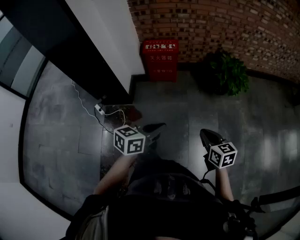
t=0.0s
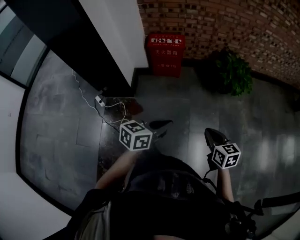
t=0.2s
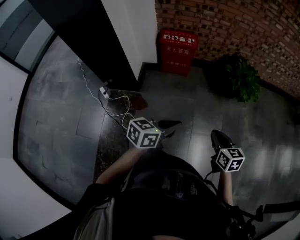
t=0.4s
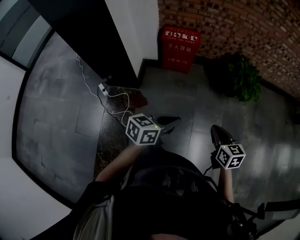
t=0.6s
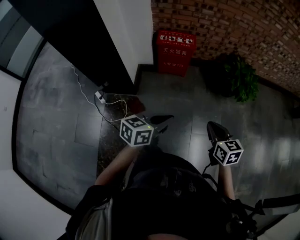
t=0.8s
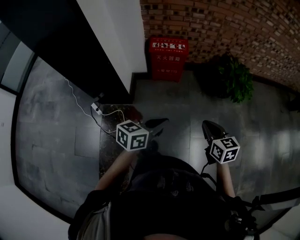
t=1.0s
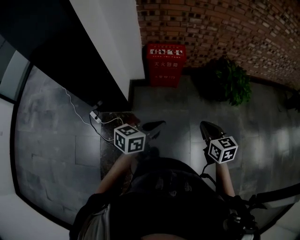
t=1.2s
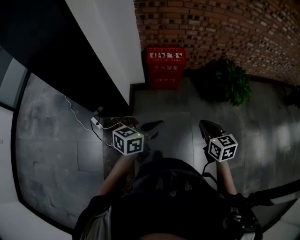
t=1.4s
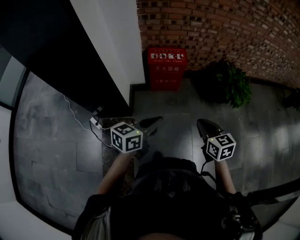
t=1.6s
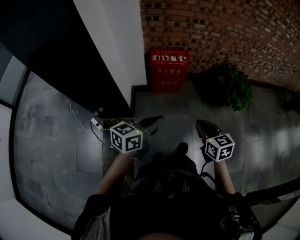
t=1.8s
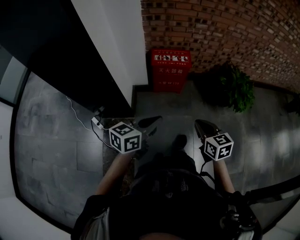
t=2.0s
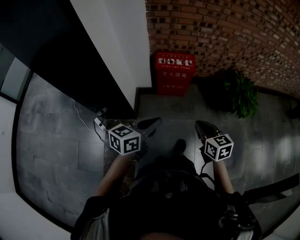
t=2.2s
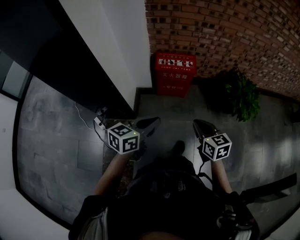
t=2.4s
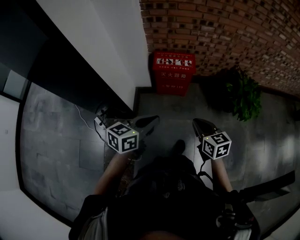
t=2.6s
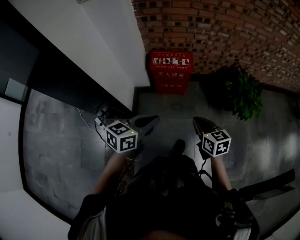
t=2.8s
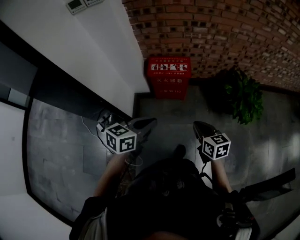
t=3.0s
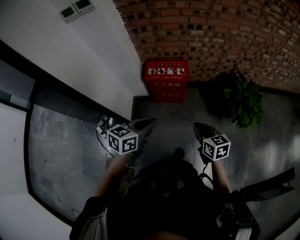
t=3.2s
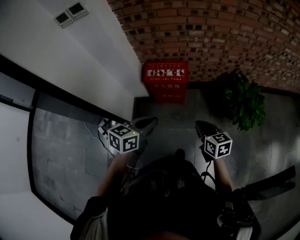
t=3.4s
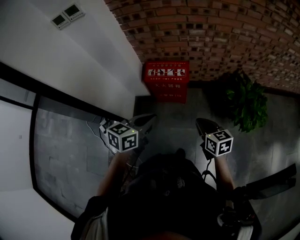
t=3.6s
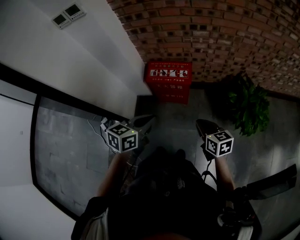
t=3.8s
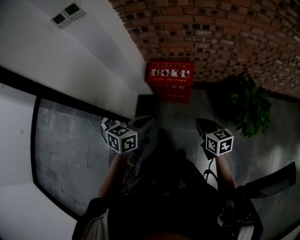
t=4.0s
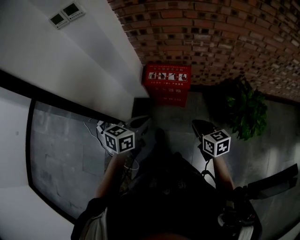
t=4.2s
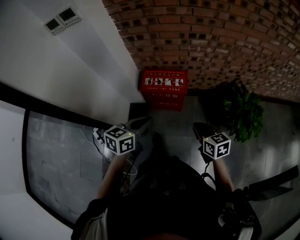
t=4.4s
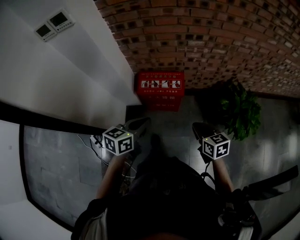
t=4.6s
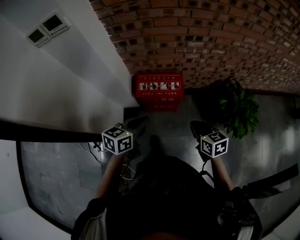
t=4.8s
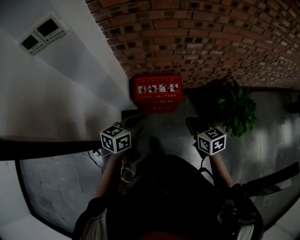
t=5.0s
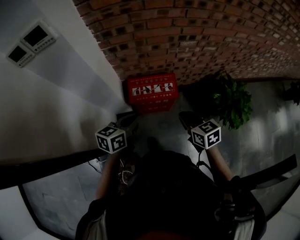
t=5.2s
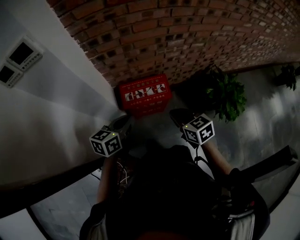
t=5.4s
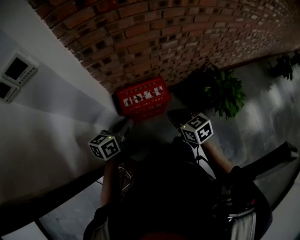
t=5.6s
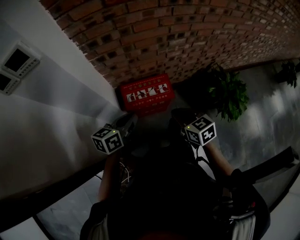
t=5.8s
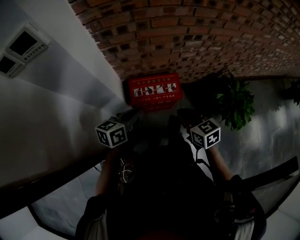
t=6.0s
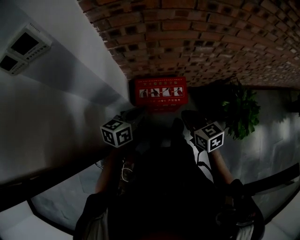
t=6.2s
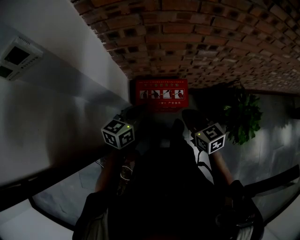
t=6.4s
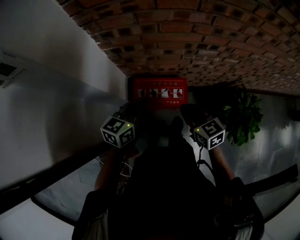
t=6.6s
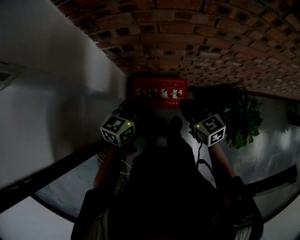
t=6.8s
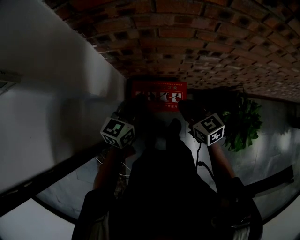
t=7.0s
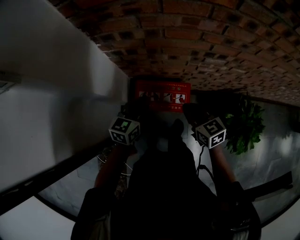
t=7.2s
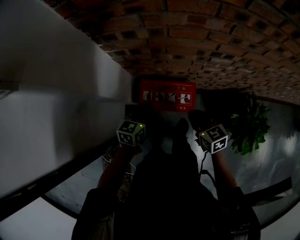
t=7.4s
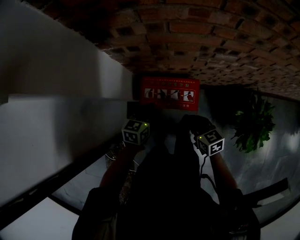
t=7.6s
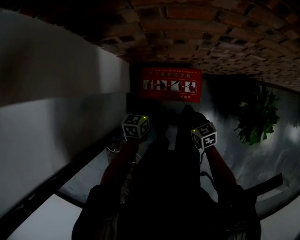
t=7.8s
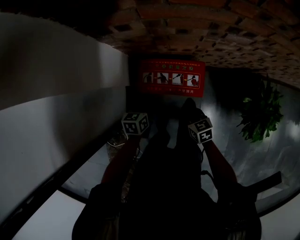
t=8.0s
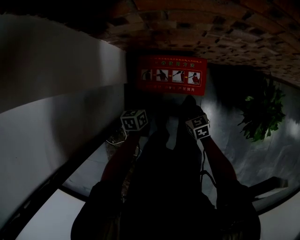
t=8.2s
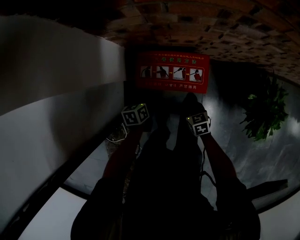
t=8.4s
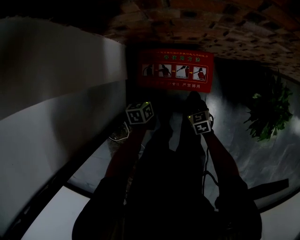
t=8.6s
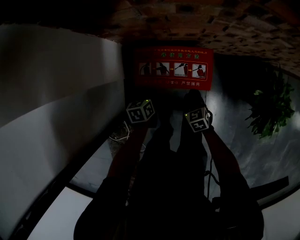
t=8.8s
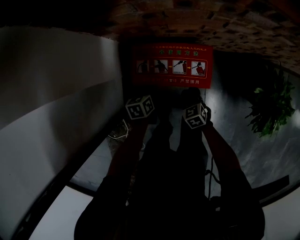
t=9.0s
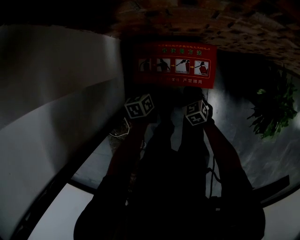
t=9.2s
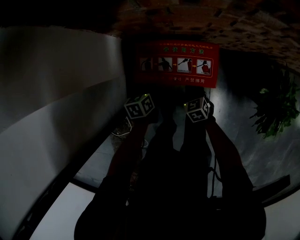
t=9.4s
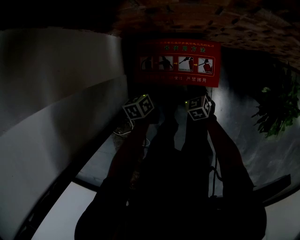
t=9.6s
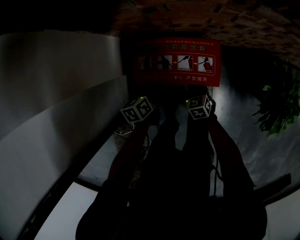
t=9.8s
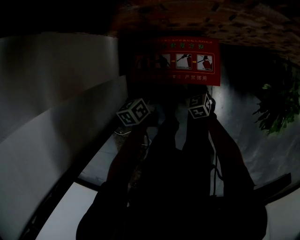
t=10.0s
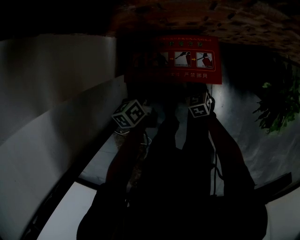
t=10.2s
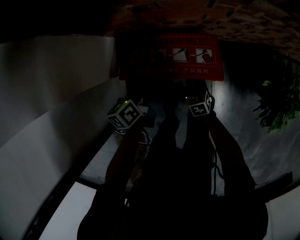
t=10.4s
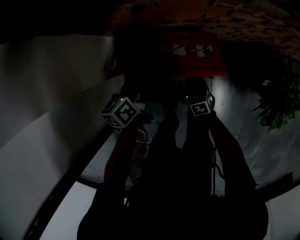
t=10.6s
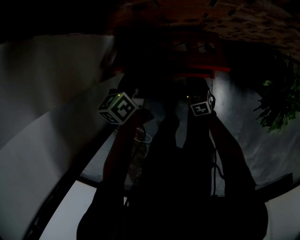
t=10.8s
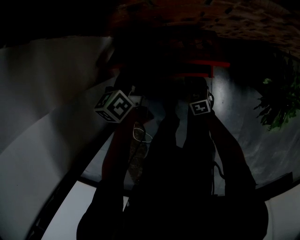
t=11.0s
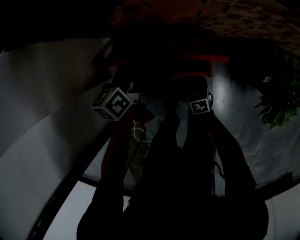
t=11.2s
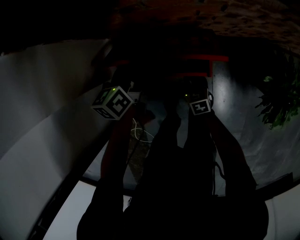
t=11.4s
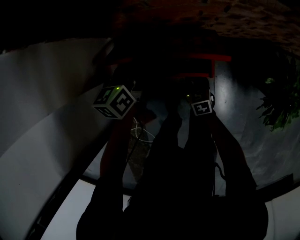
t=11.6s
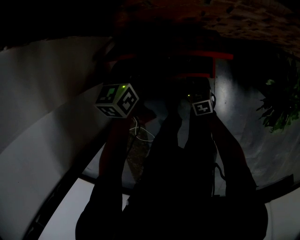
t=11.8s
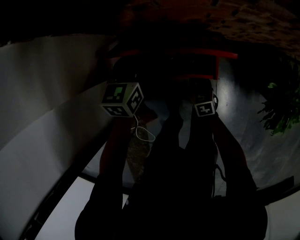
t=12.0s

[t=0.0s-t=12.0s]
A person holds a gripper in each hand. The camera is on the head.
t=0.0s to t=1.6s: The grippers both shift to the left and forward by some 30 cm.
t=1.6s to t=3.0s: The grippers both shift forward by approximately 20 cm.
t=3.0s to t=4.4s: The grippers both shift forward by roughly 15 cm.
t=4.4s to t=6.0s: The right gripper goes approximately 20 cm to the left and forward, while the left gripper goes approximately 20 cm forward and to the left.
t=6.0s to t=7.6s: The grippers both shift downward and forward by about 15 cm. The left gripper changes its angle by some 30 degrees.
t=7.6s to t=9.0s: Both grippers travel together downward, about 25 cm. The right gripper changes its angle by roughly 20 degrees; the left gripper changes its angle by about 30 degrees.
t=9.0s to t=10.4s: The left gripper goes some 10 cm upward.
t=10.4s to t=12.0s: The left gripper heads forward and upward, covering about 10 cm, and rotates about 40 degrees.

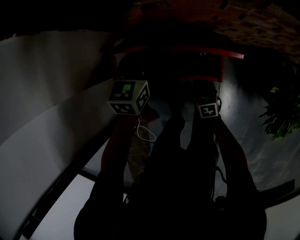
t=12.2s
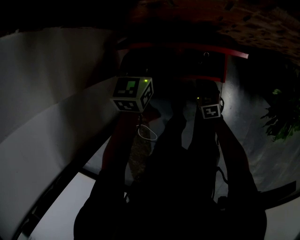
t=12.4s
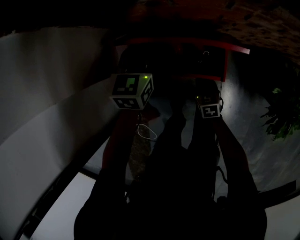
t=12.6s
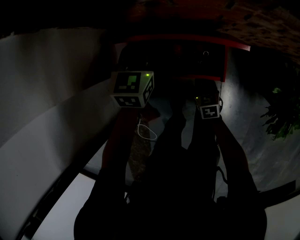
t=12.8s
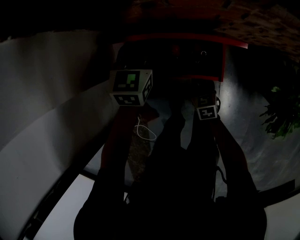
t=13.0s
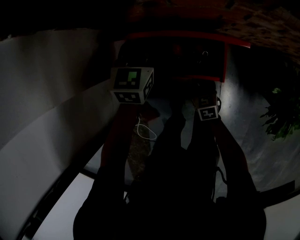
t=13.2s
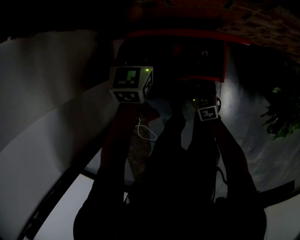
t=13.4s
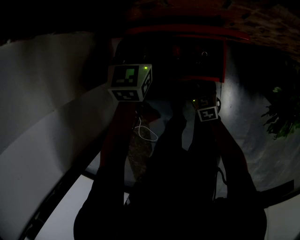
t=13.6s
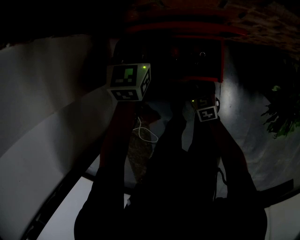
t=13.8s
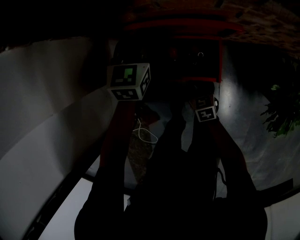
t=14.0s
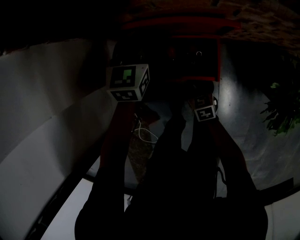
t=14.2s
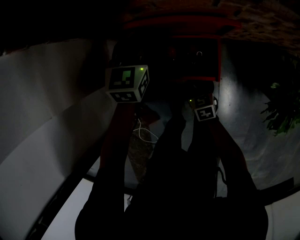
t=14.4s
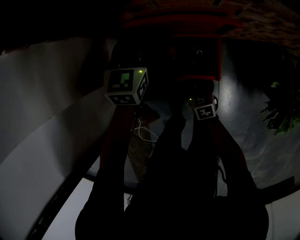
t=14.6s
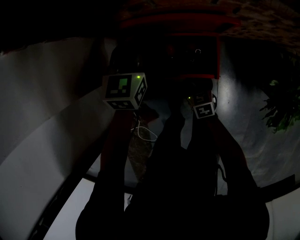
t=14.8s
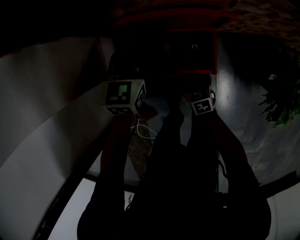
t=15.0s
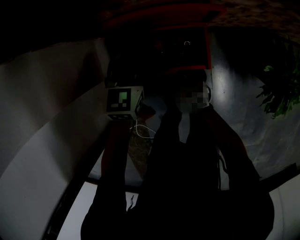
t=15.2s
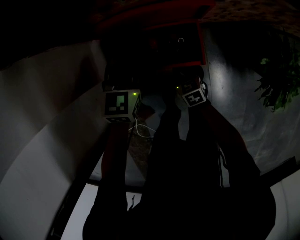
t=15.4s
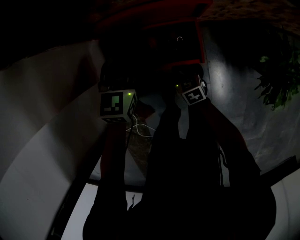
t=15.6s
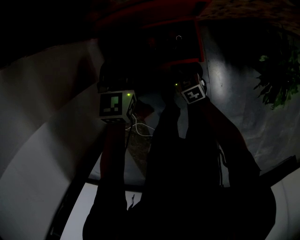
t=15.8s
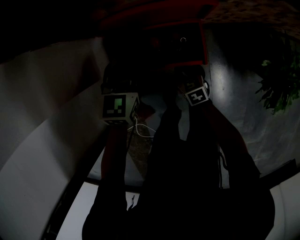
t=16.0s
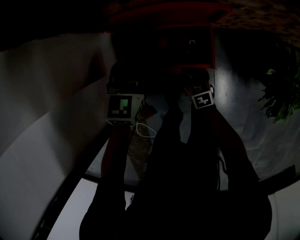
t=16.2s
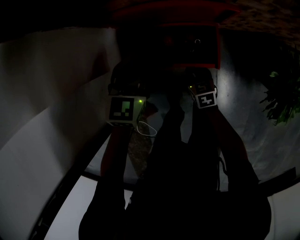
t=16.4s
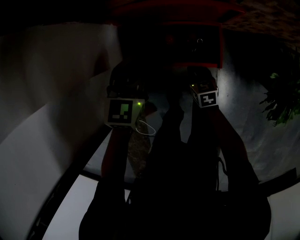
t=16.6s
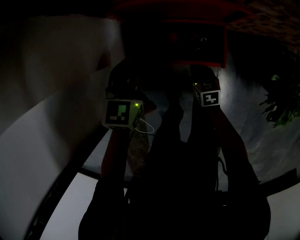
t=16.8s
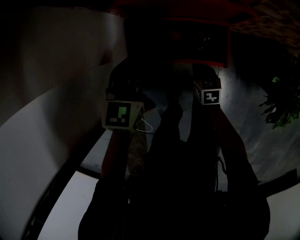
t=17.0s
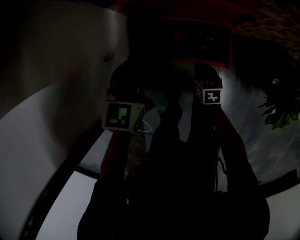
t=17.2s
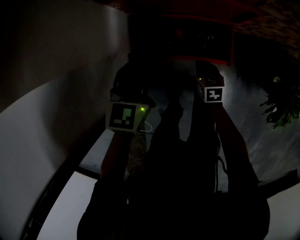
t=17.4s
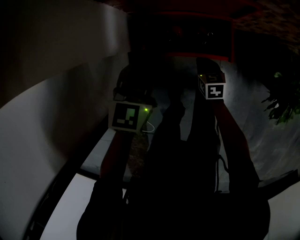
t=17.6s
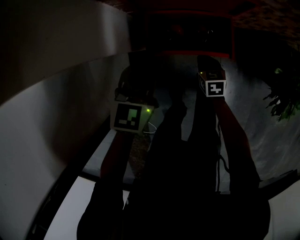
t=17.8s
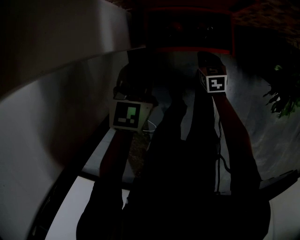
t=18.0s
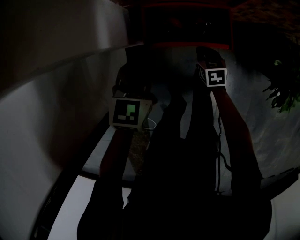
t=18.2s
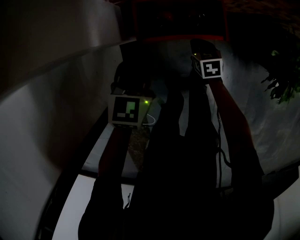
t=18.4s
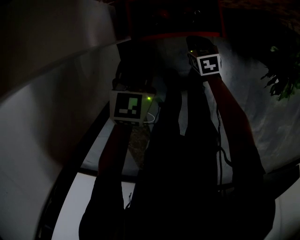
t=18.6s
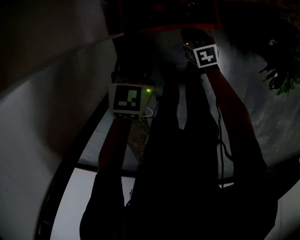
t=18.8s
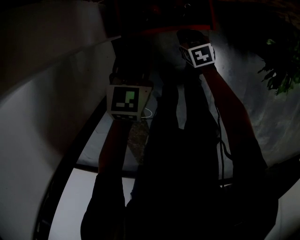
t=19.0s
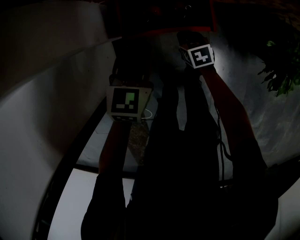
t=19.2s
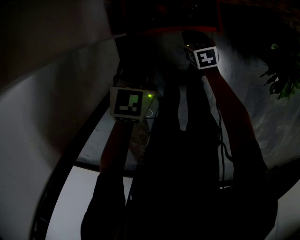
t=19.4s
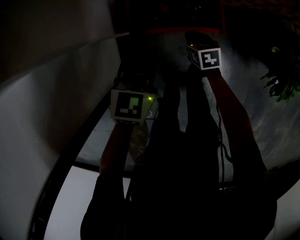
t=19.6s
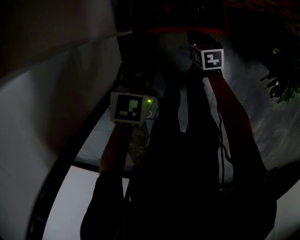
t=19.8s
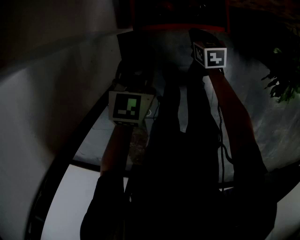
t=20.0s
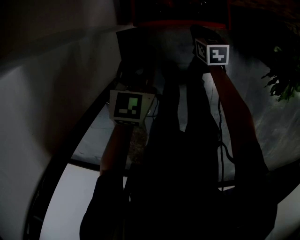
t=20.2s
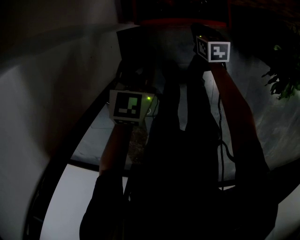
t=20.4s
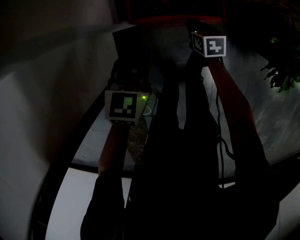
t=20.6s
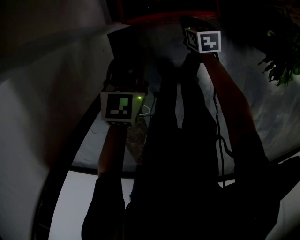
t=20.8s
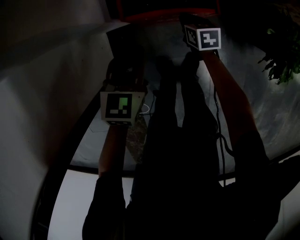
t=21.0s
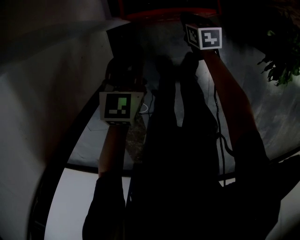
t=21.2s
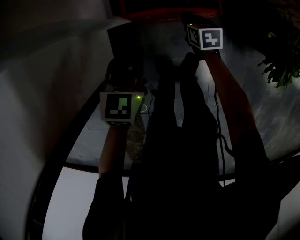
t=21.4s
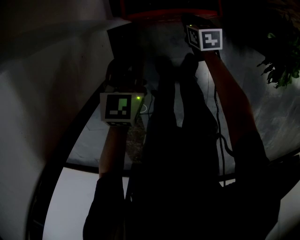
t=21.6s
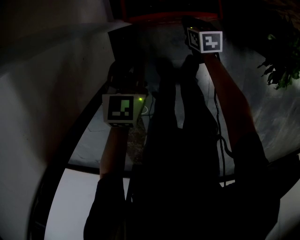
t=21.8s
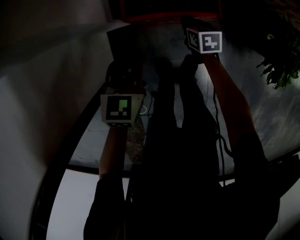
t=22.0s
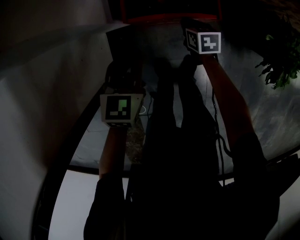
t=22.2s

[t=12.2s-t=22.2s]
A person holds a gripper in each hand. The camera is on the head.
t=12.2s to t=13.6s: The left gripper changes place by about 5 cm.
t=13.6s to t=15.0s: The grippers stay close to where they were, moving slightly.
t=15.0s to t=16.4s: The left gripper heads backward, covering about 5 cm.
t=16.4s to t=18.0s: The left gripper is displaced backward and to the left by approximately 10 cm.
t=18.0s to t=19.4s: The left gripper shifts approximately 5 cm to the right.
t=19.4s to t=20.8s: The left gripper shifts by approximately 5 cm.
t=20.8s to t=22.2s: There are only small adjustments of the grippers.

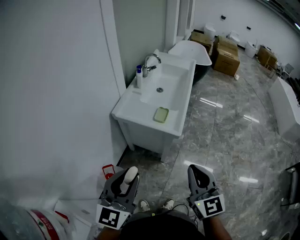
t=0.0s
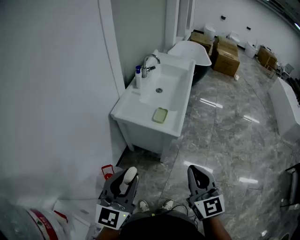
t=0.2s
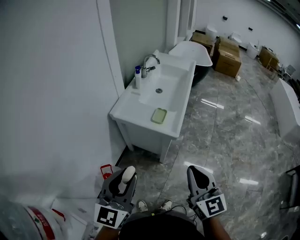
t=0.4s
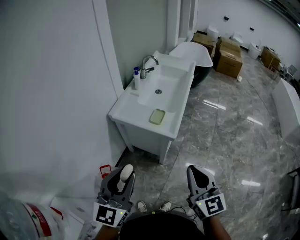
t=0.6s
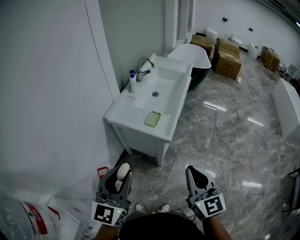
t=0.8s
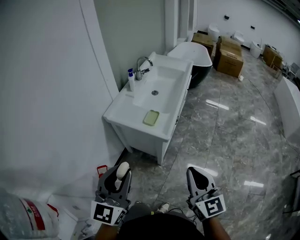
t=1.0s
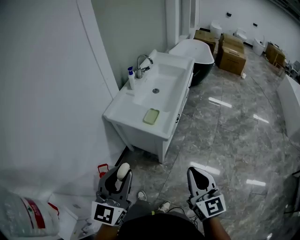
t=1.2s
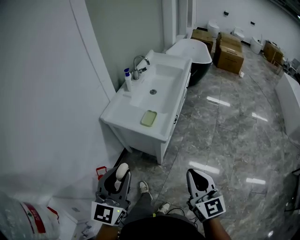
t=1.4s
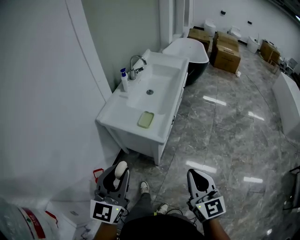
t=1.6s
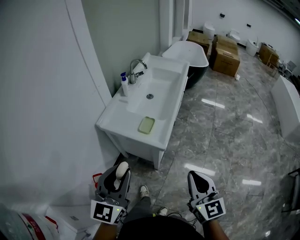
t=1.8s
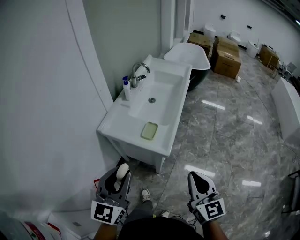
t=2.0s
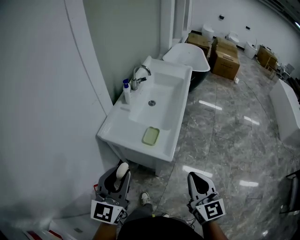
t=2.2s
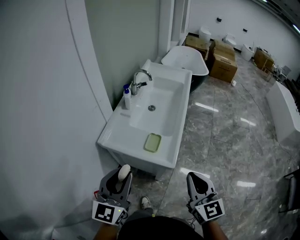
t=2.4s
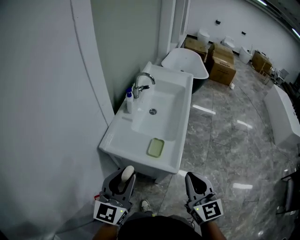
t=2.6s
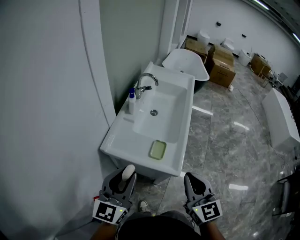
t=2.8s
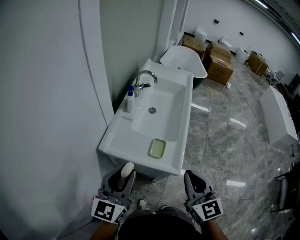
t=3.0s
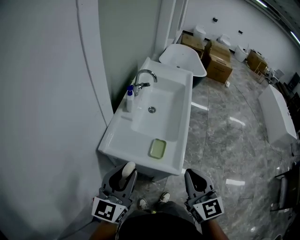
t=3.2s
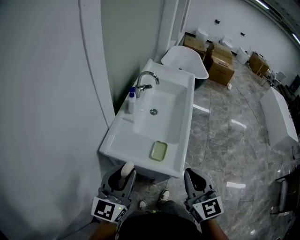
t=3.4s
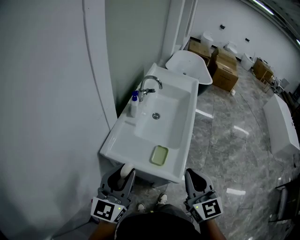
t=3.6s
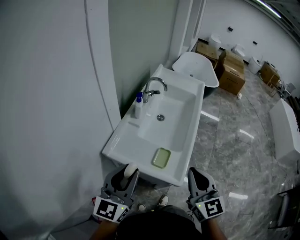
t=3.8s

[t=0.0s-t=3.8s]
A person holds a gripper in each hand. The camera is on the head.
t=0.0s to t=1.2s: Both grippers move to the right, some 10 cm.
t=1.2s to t=2.6s: The grippers both shift forward and to the left by roughly 25 cm.
t=2.6s to t=3.8s: The two grippers go some 10 cm forward.
